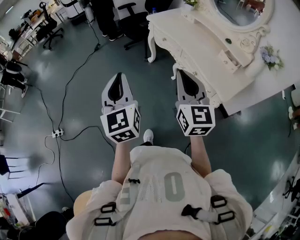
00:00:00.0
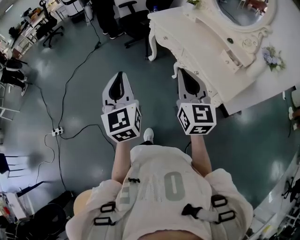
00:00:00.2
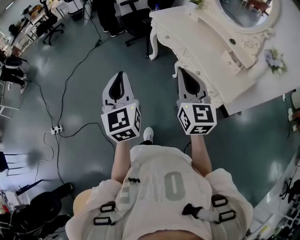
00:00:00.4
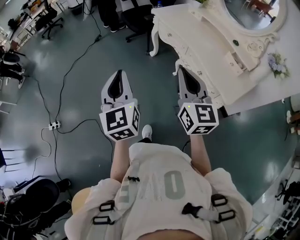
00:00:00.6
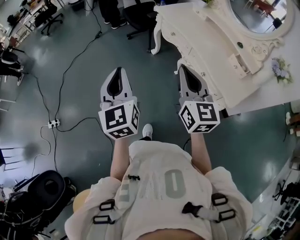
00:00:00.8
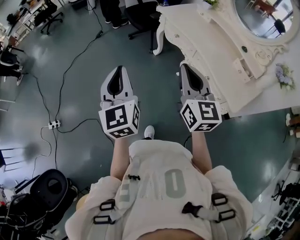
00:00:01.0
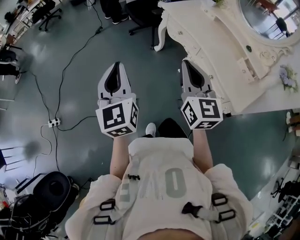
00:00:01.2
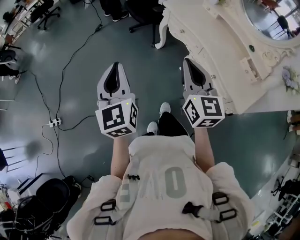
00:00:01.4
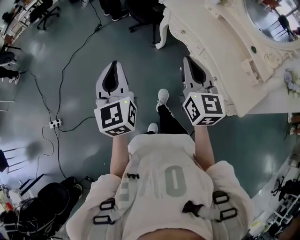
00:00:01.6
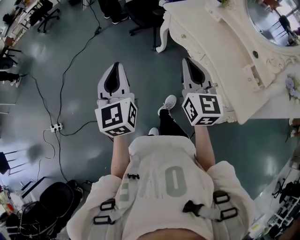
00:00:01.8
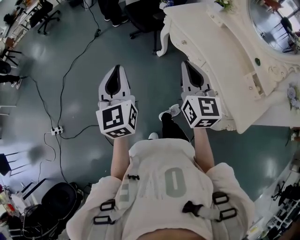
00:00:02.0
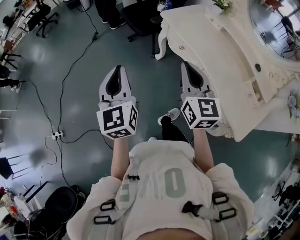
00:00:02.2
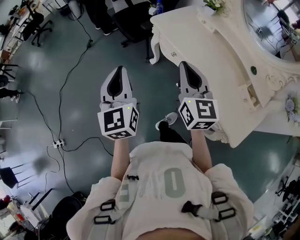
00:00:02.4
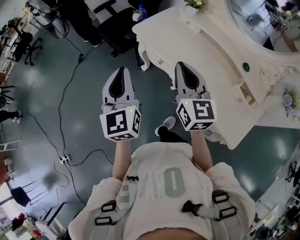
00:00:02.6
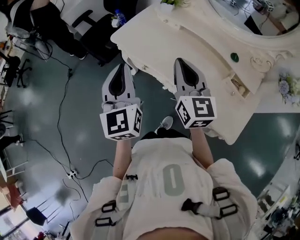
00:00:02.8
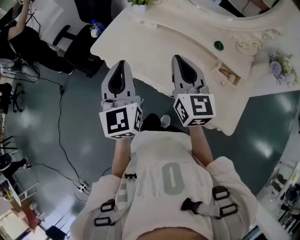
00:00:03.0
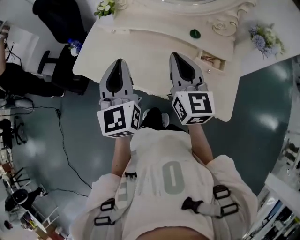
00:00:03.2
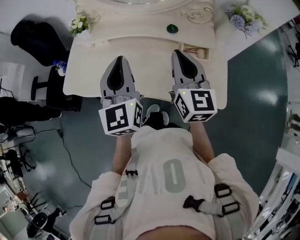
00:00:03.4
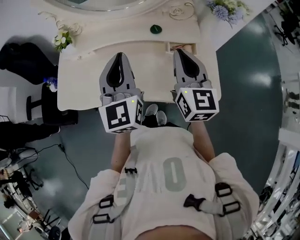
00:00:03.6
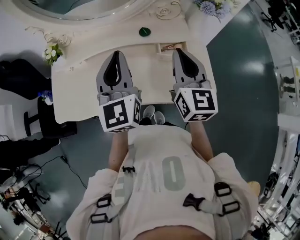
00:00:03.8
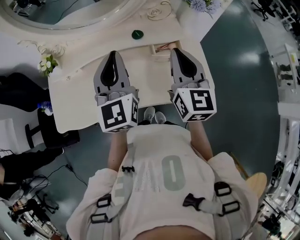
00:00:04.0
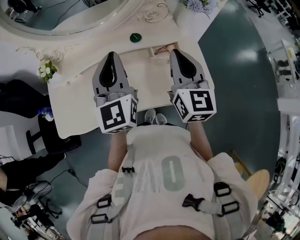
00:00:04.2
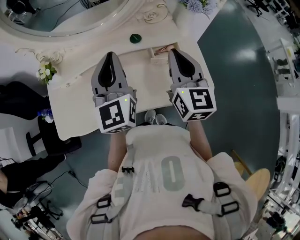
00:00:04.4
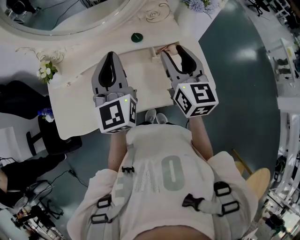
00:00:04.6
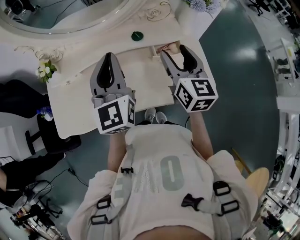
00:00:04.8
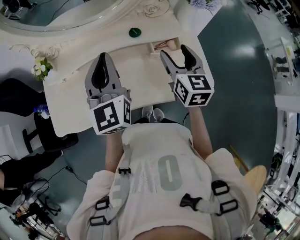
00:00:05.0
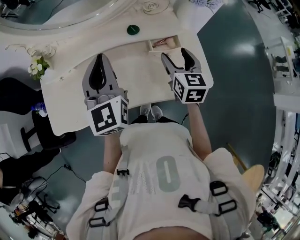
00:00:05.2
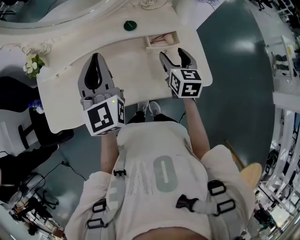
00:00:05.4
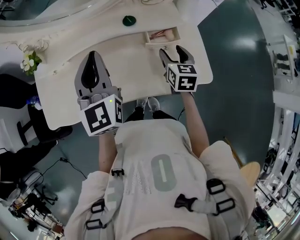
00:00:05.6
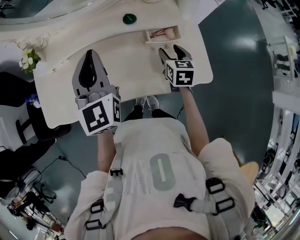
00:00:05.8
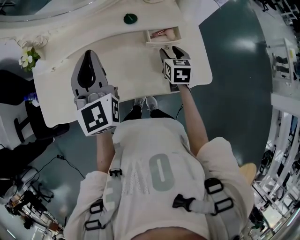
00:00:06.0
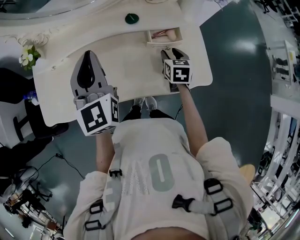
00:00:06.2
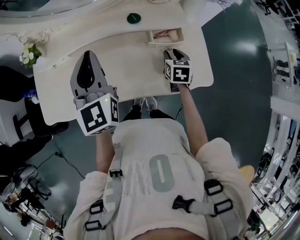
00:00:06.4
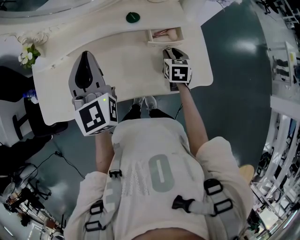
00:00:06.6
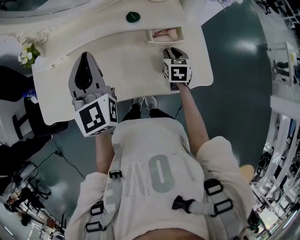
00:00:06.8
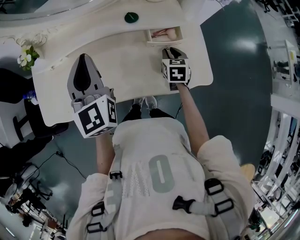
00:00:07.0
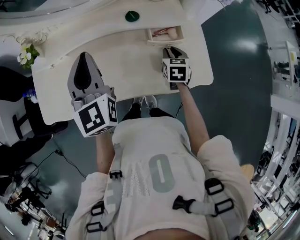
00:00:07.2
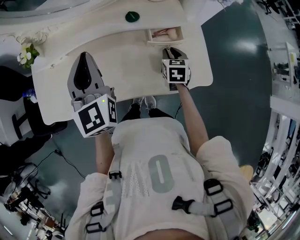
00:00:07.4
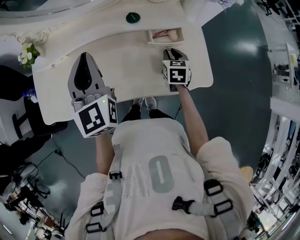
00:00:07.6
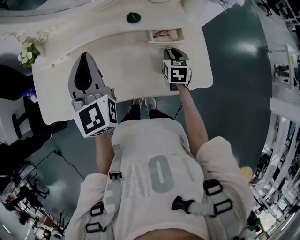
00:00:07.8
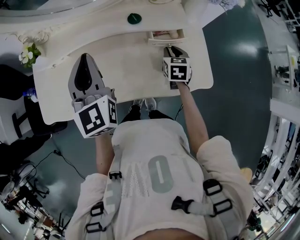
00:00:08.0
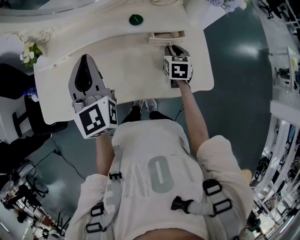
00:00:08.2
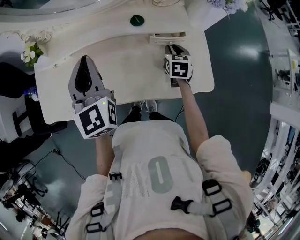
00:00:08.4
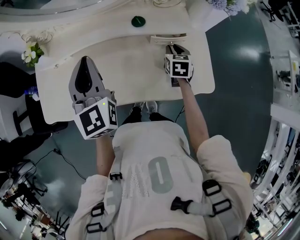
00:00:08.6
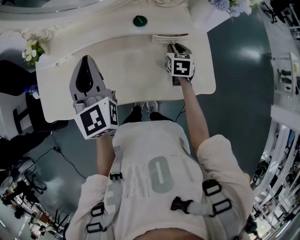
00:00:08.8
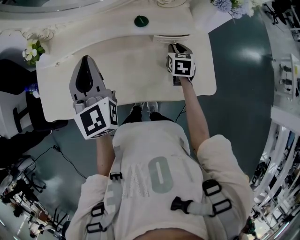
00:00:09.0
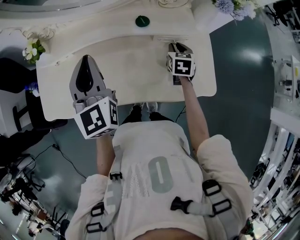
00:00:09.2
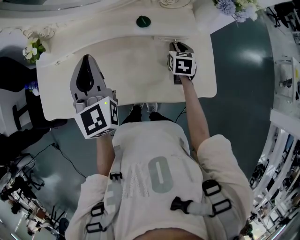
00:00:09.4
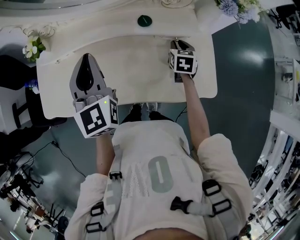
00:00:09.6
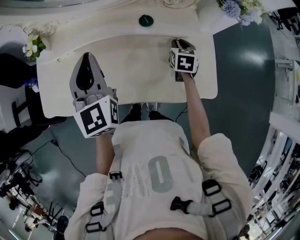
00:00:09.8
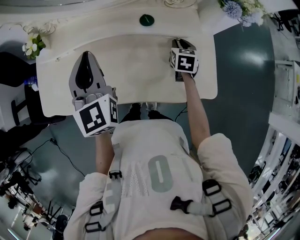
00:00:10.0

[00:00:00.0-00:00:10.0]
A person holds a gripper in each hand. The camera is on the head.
00:00:00.0 to 00:00:01.4: The two grippers go approximately 20 cm forward and to the left.
00:00:01.4 to 00:00:02.8: The two grippers go some 40 cm forward and to the right. The left gripper rotates roughly 20 degrees.
00:00:02.8 to 00:00:04.2: The right gripper moves some 30 cm, and rotates some 60 degrees. The left gripper ends up some 35 cm from where it was, and rotates some 50 degrees.
00:00:04.2 to 00:00:05.8: The left gripper ends up about 5 cm from where it was. The right gripper goes approximately 25 cm downward, tips its fingers downward by some 30 degrees, and opens up.
00:00:05.8 to 00:00:07.2: The right gripper goes about 5 cm downward, and closes.
00:00:07.2 to 00:00:08.6: The grippers make only small movements.
00:00:08.6 to 00:00:10.0: There are only small adjustments of the grippers.

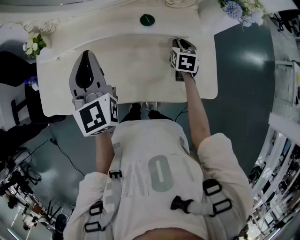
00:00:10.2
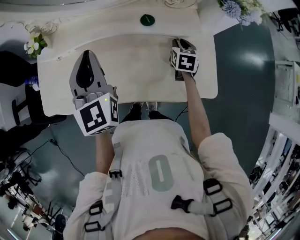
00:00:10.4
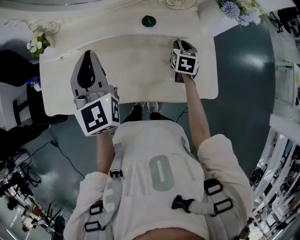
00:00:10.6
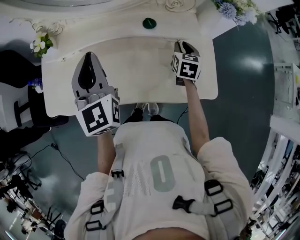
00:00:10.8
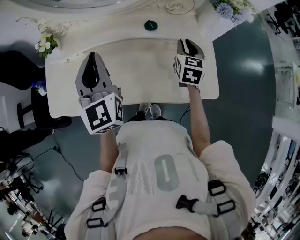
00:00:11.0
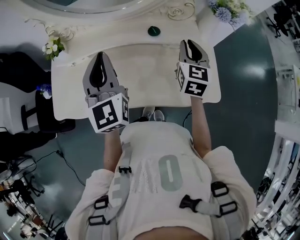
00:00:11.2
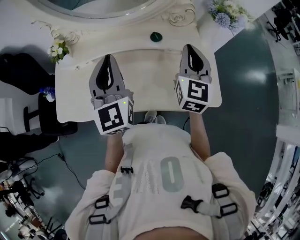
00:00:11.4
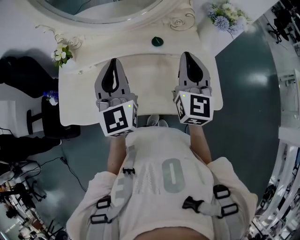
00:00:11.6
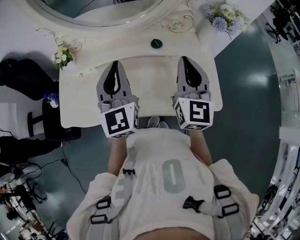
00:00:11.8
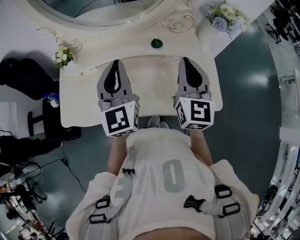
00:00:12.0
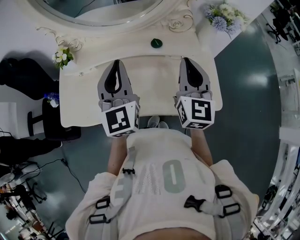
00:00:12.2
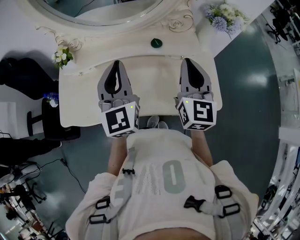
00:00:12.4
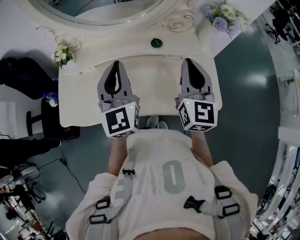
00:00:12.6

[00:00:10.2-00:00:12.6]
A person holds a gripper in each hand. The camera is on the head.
00:00:10.2 to 00:00:11.4: The left gripper heads upward, covering approximately 5 cm. The right gripper travels upward by roughly 25 cm, and tips its fingers upward by about 40 degrees.
00:00:11.4 to 00:00:12.6: The right gripper shifts by about 5 cm.
